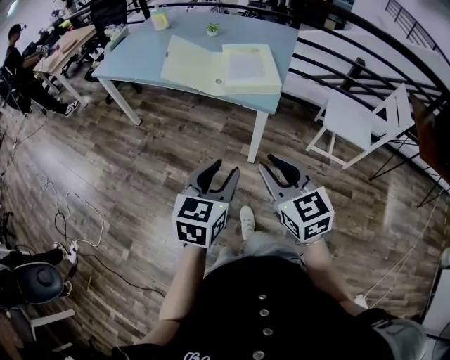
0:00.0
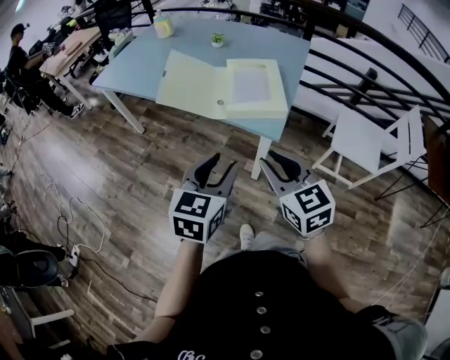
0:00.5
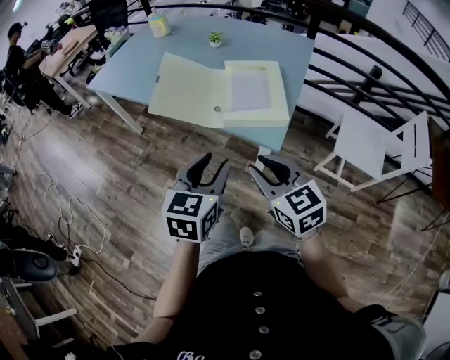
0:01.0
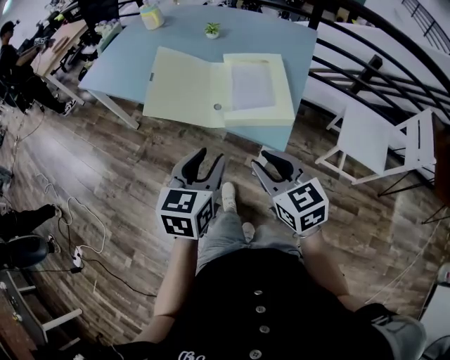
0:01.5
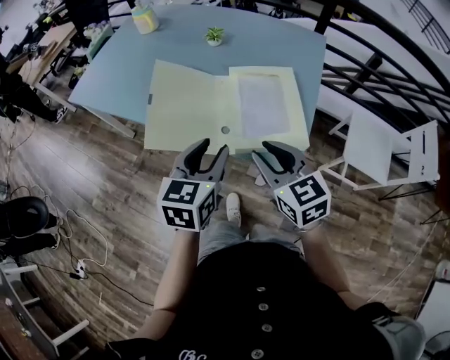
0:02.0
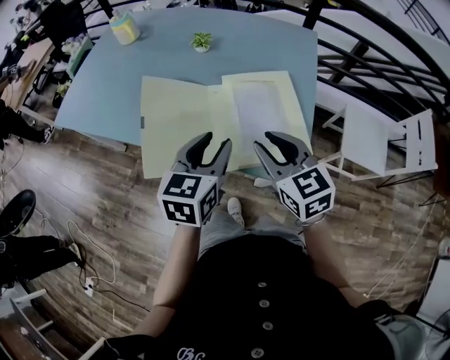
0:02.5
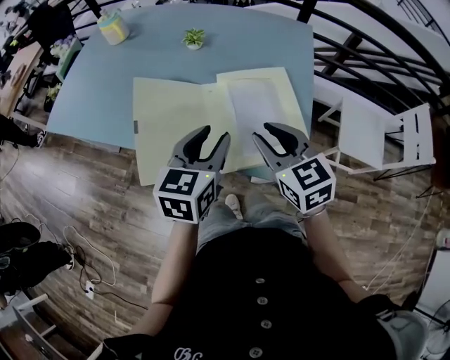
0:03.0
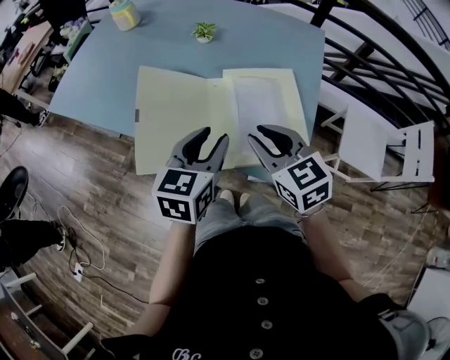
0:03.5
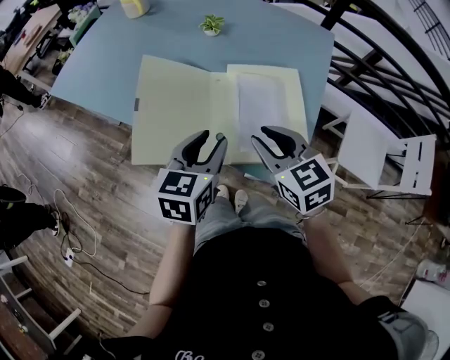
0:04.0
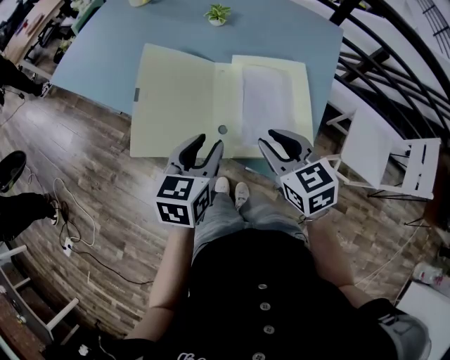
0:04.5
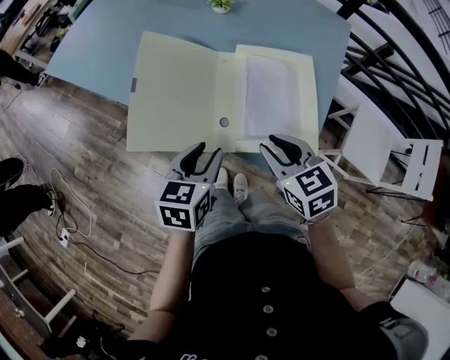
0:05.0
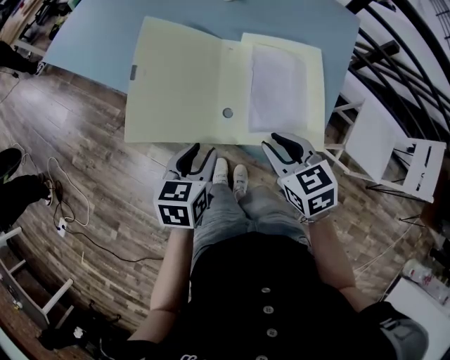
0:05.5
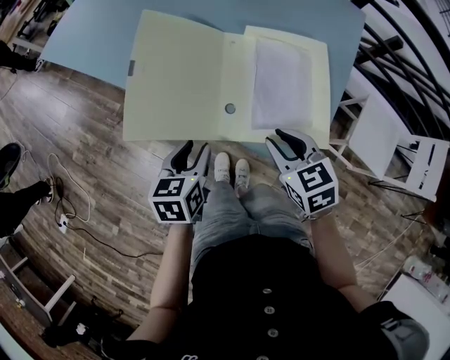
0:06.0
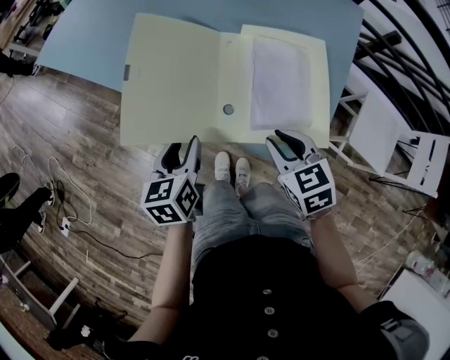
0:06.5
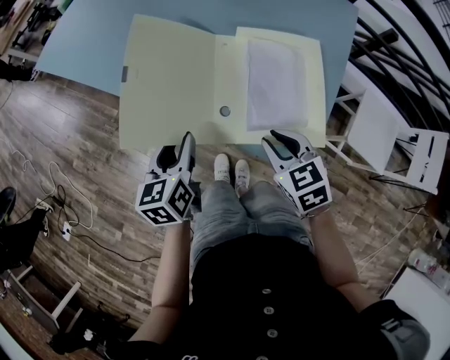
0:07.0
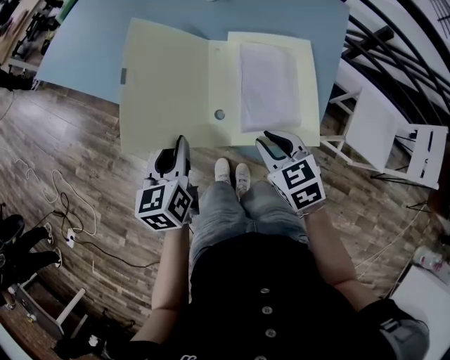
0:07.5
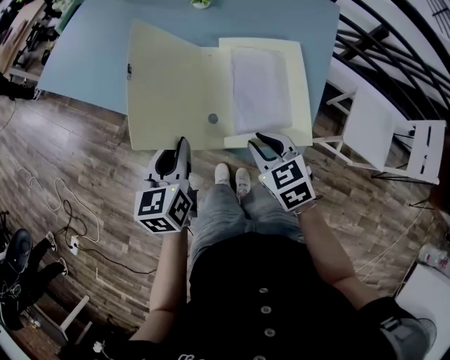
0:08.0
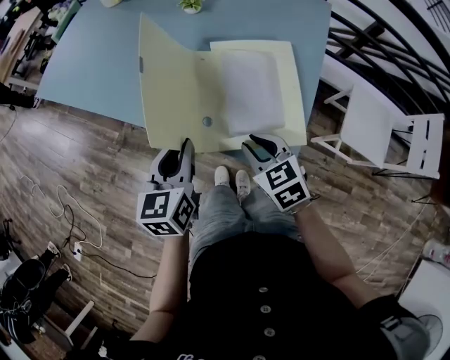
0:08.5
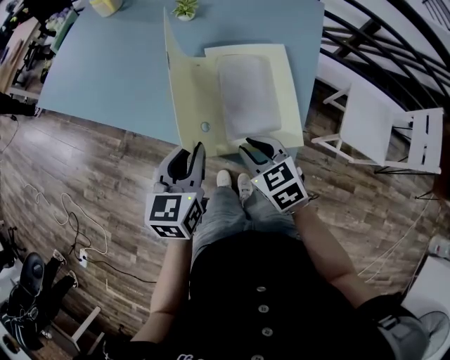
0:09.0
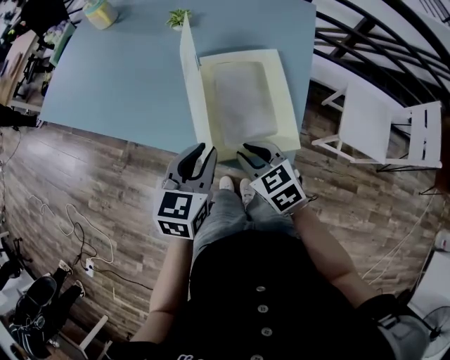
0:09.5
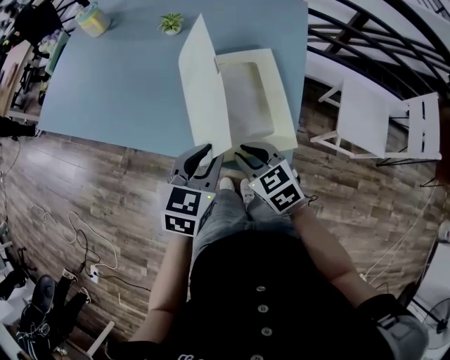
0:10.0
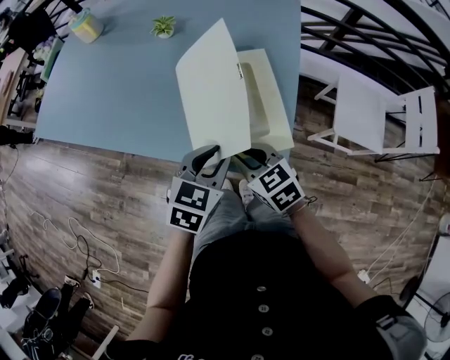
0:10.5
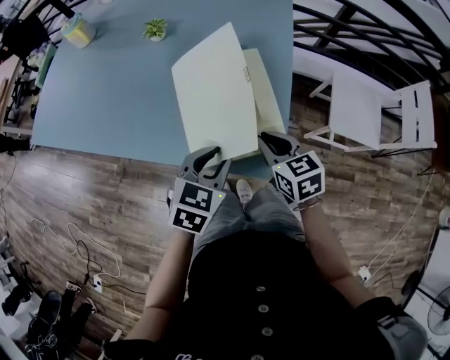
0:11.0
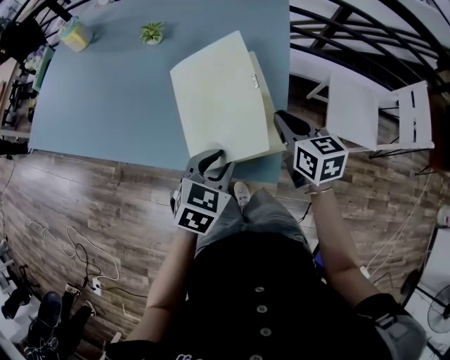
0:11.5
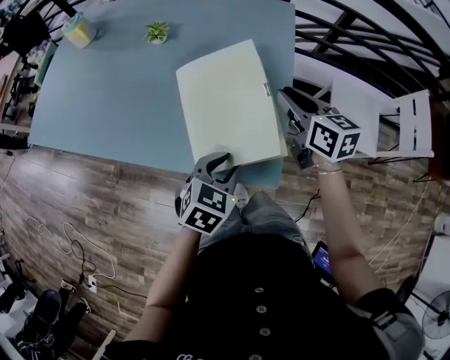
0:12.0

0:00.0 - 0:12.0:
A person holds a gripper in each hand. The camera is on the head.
0:00.0 - 0:02.0: The two grippers go approximately 40 cm forward.
0:02.0 - 0:04.0: The two grippers go approximately 10 cm forward.
0:04.0 - 0:06.0: The left gripper is displaced downward and to the left by about 15 cm, and changes its angle by some 20 degrees, while the right gripper is displaced downward by roughly 10 cm.
0:06.0 - 0:08.0: The left gripper travels upward by about 10 cm, and closes up.
0:08.0 - 0:10.0: The left gripper shifts about 15 cm to the right, and swivels roughly 40 degrees.
0:10.0 - 0:12.0: The right gripper goes some 25 cm forward, to the right and upward, and changes its angle by about 40 degrees; the left gripper moves to the right, about 10 cm.

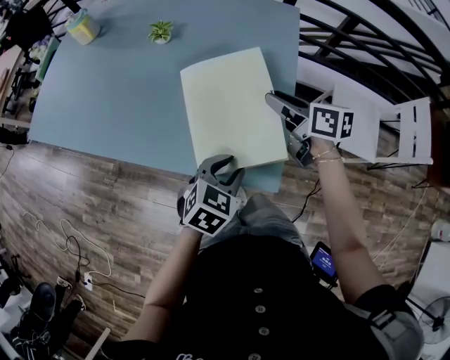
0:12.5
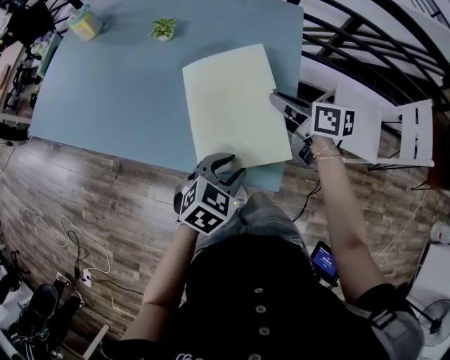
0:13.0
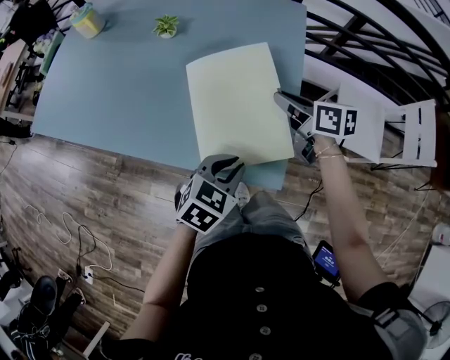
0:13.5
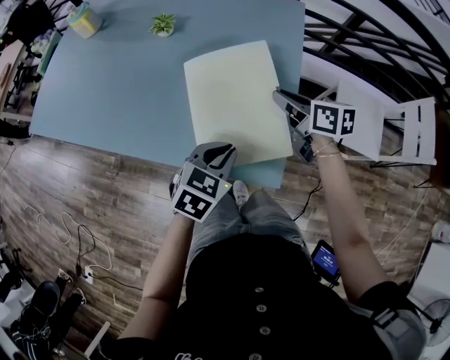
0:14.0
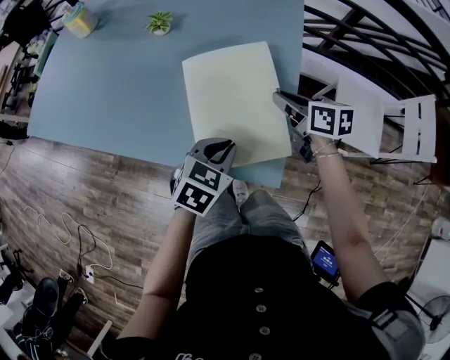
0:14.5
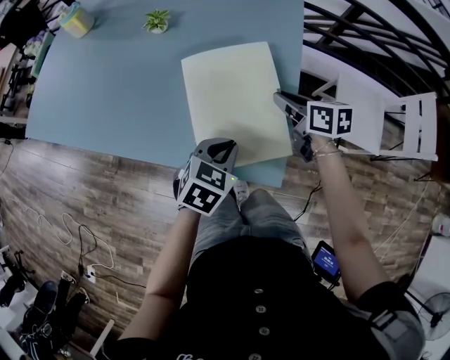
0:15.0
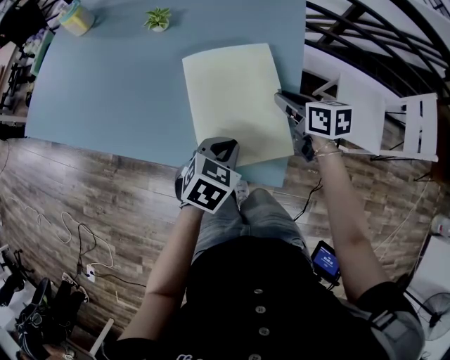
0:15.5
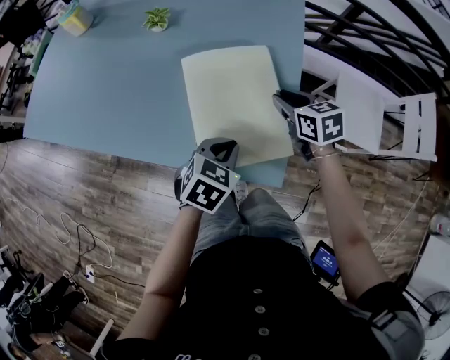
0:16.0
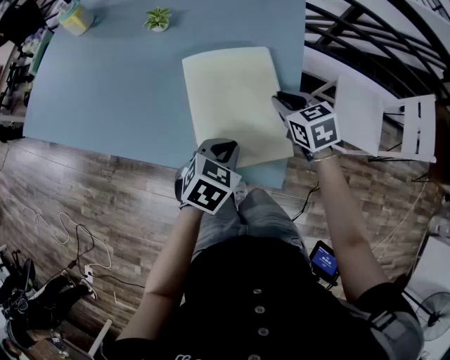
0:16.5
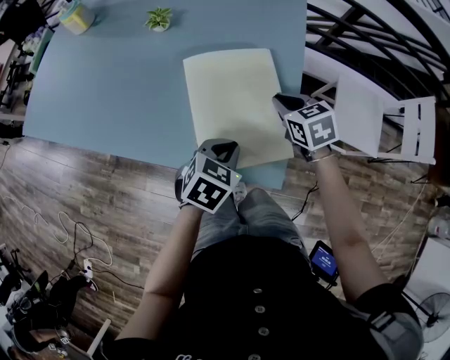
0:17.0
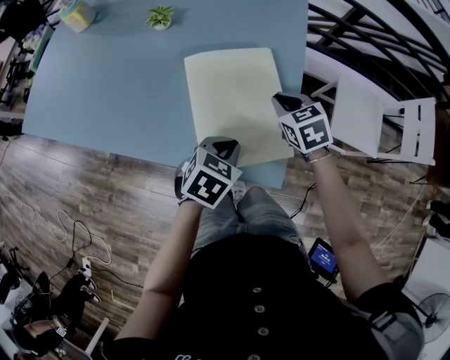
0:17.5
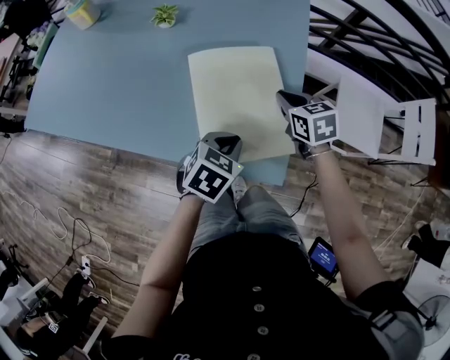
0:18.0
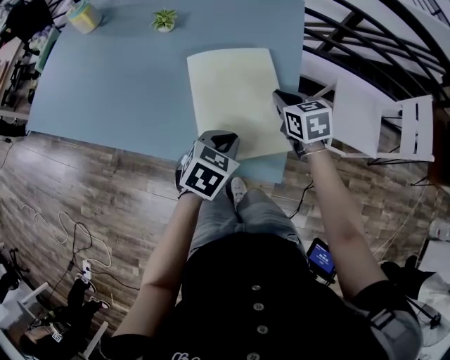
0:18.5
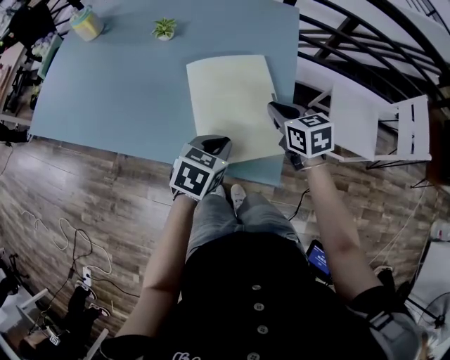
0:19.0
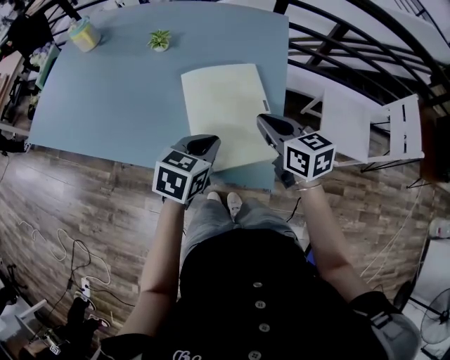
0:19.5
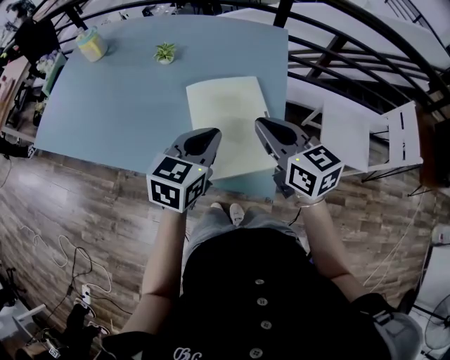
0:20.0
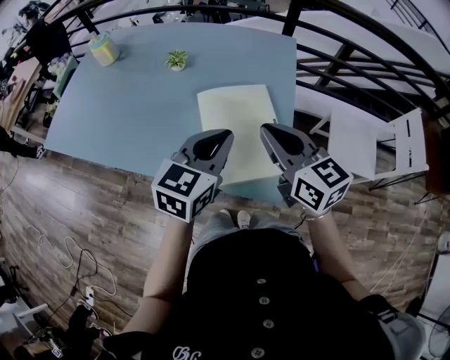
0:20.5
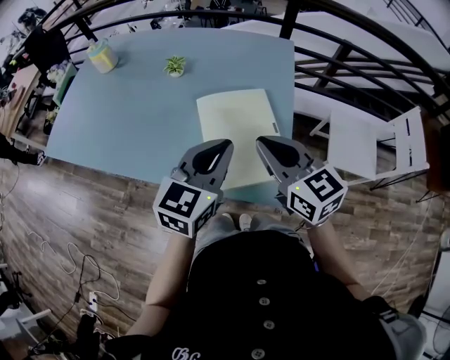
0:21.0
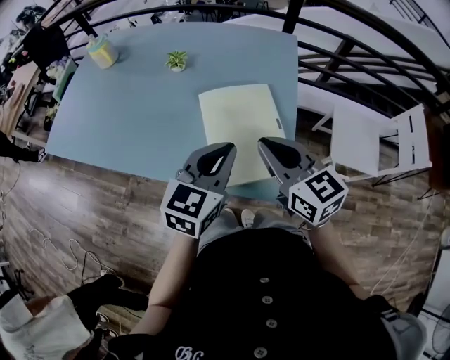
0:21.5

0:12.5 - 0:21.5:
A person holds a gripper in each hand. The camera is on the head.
0:12.5 - 0:14.5: The left gripper closes up.
0:14.5 - 0:17.0: The right gripper changes its angle by roughly 30 degrees.
0:17.0 - 0:19.5: The right gripper moves upward and backward, approximately 10 cm, and turns by about 30 degrees, while the left gripper travels upward by some 5 cm.
0:19.5 - 0:21.5: The right gripper heads upward and backward, covering approximately 10 cm, while the left gripper shifts about 10 cm upward, and turns by approximately 20 degrees.

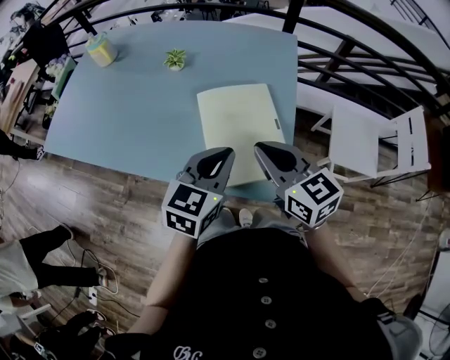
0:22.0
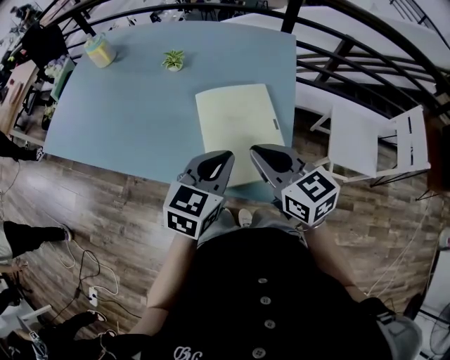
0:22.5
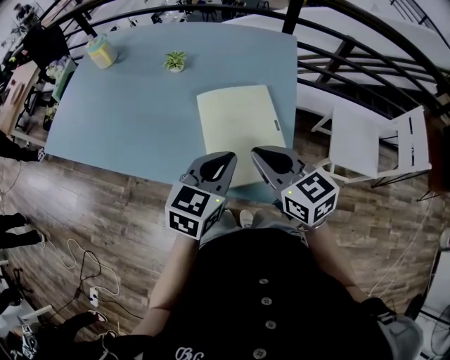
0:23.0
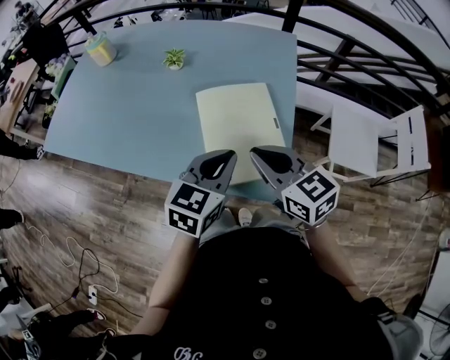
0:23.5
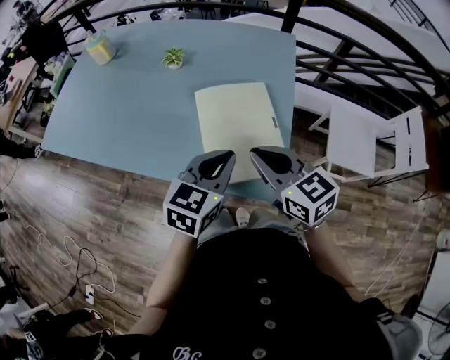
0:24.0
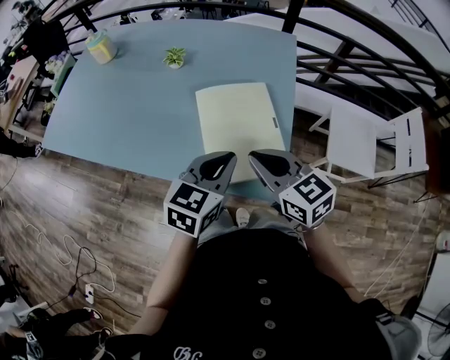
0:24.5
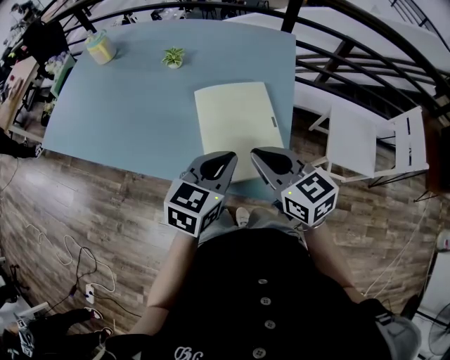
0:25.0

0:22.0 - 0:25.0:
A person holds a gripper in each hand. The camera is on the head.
0:22.0 - 0:23.5: The grippers make only small movements.
0:23.5 - 0:25.0: The two grippers keep their place.

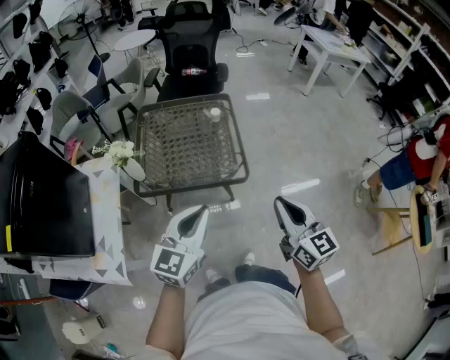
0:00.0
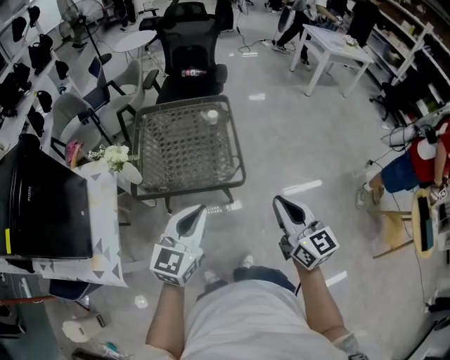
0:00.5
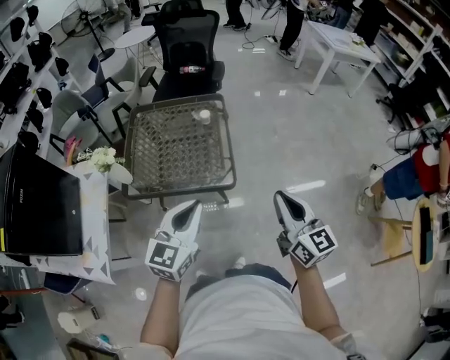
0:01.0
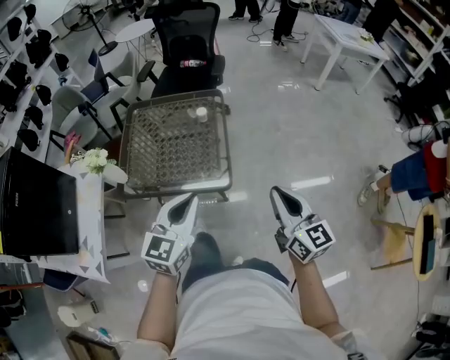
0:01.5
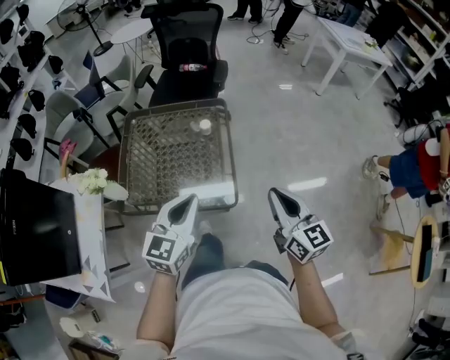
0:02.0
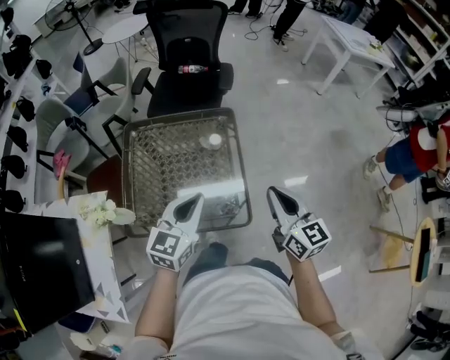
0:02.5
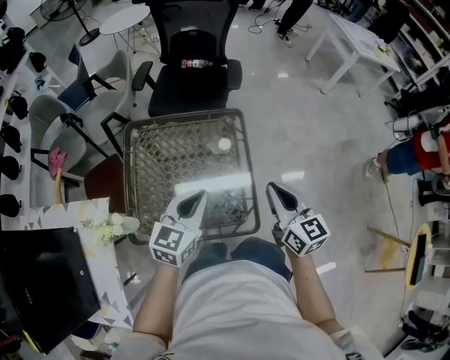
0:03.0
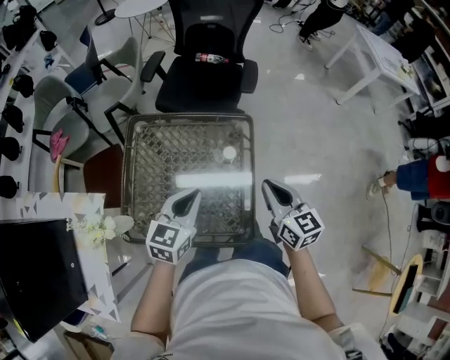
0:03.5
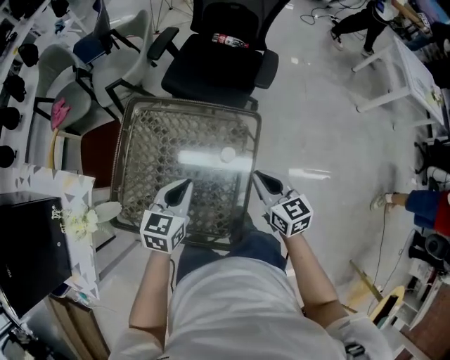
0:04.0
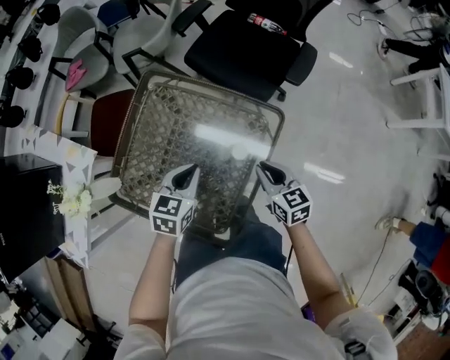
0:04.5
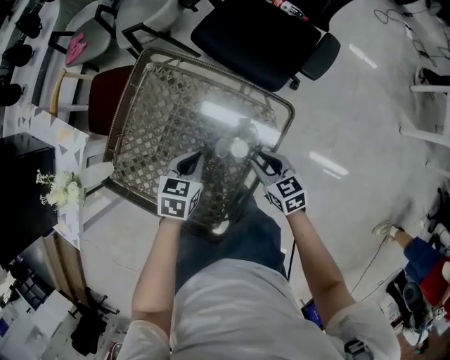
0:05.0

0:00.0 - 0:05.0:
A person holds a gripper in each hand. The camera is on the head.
0:00.0 - 0:02.5: The grippers both shift forward by roughly 35 cm.
0:02.5 - 0:05.0: Both grippers travel together downward, some 30 cm. The left gripper points its fingers roughly 40 degrees further downward; the right gripper swivels some 60 degrees, and opens.
